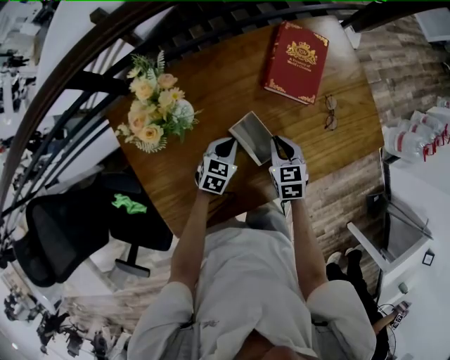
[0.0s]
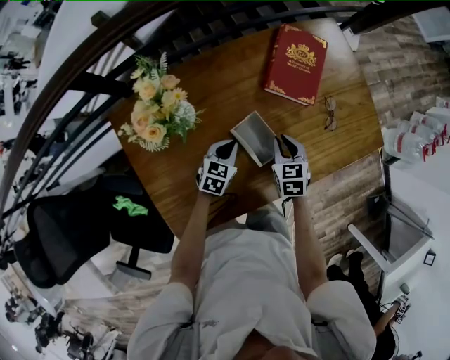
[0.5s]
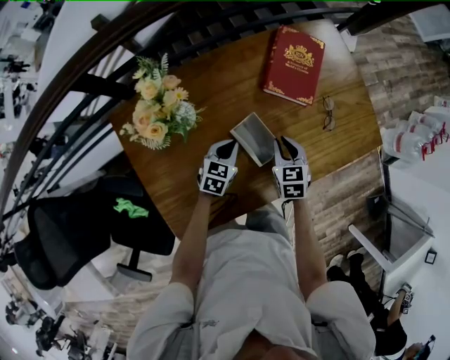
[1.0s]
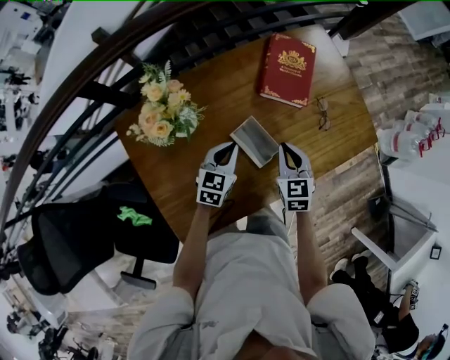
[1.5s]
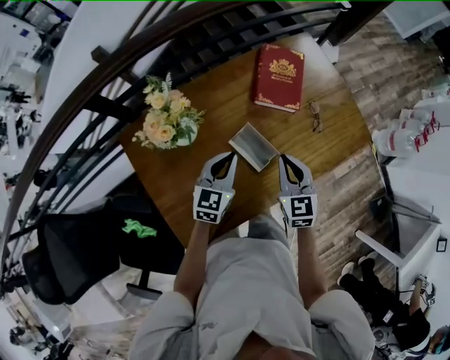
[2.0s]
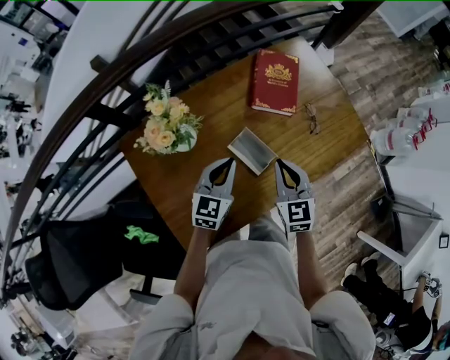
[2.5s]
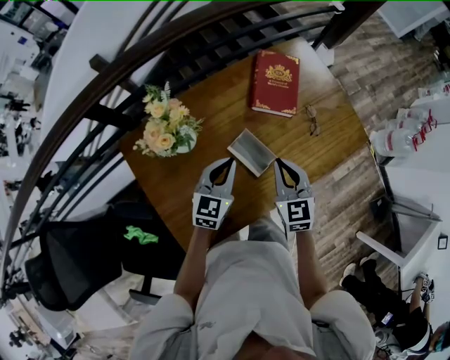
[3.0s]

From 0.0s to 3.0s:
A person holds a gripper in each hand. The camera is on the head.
From 0.0s to 1.5s: Both grippers travel together upward, approximately 10 cm.
From 1.5s to 3.0s: The grippers both shift upward by some 10 cm.

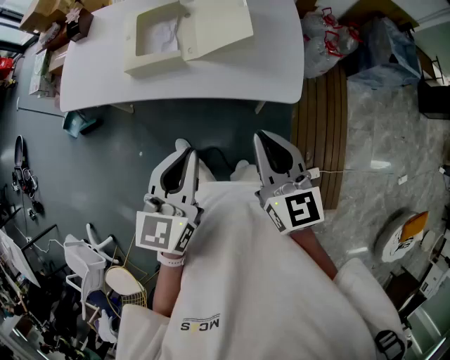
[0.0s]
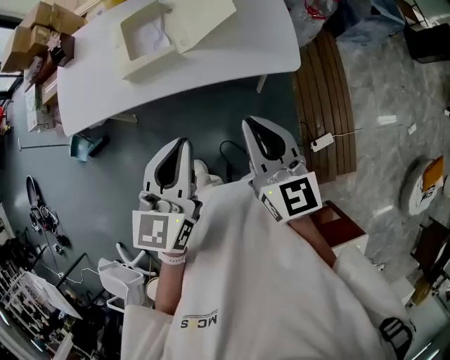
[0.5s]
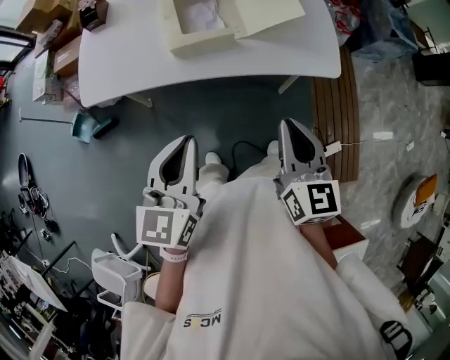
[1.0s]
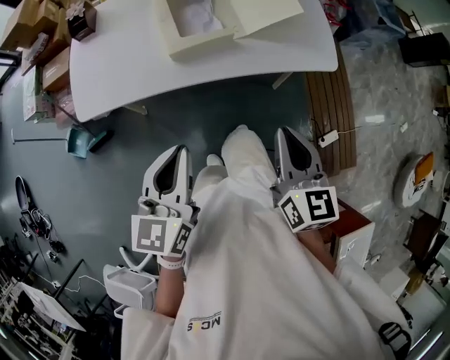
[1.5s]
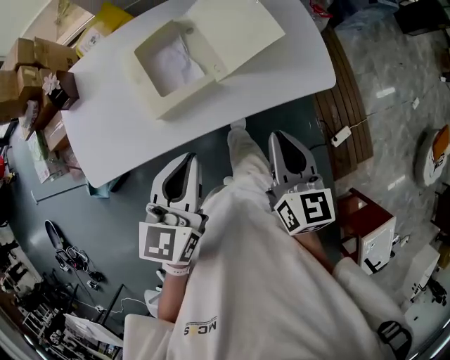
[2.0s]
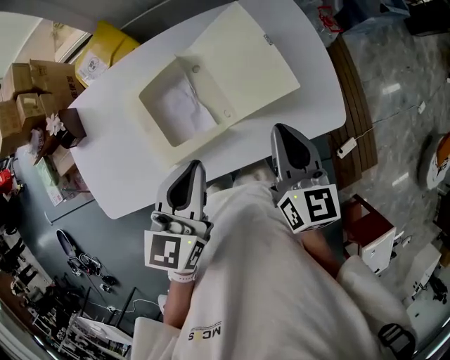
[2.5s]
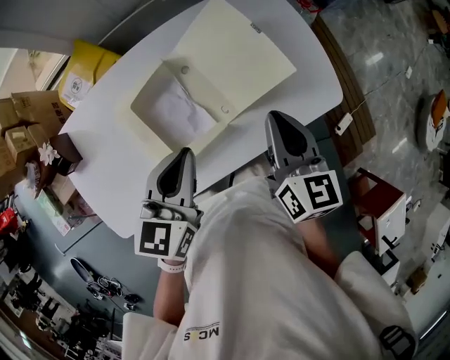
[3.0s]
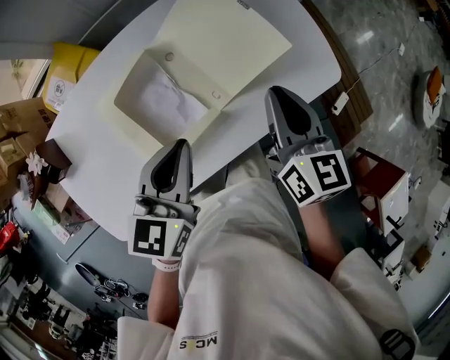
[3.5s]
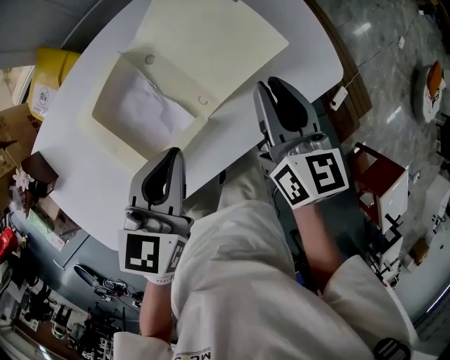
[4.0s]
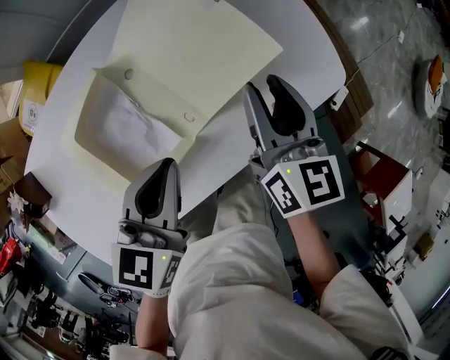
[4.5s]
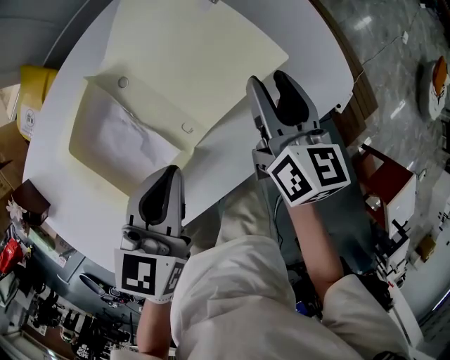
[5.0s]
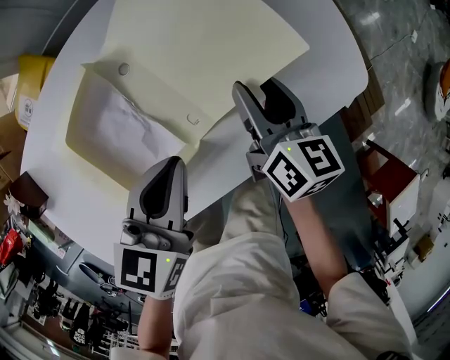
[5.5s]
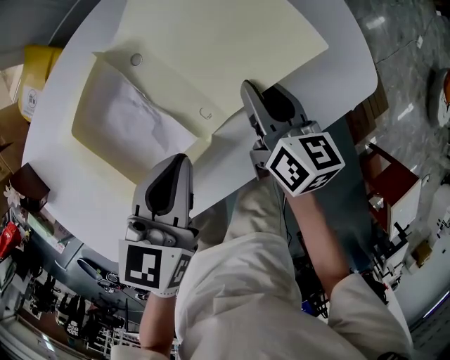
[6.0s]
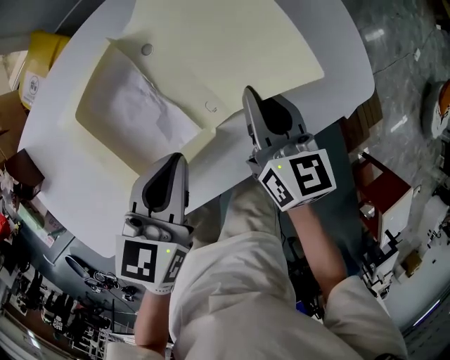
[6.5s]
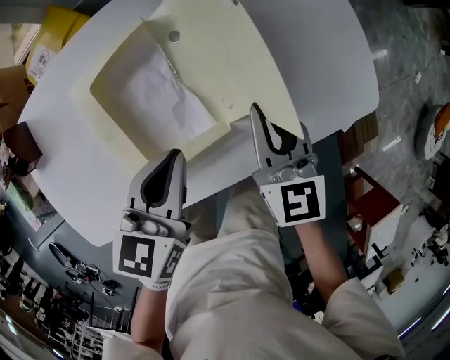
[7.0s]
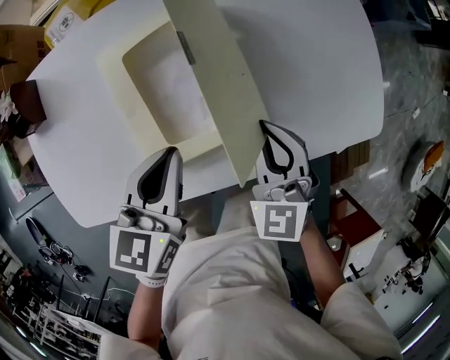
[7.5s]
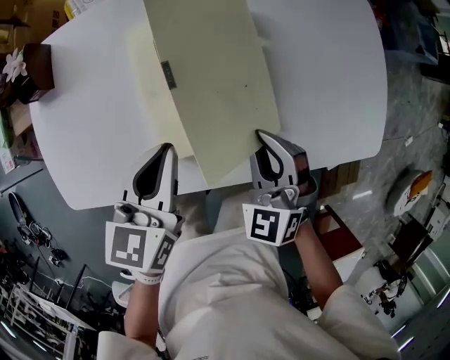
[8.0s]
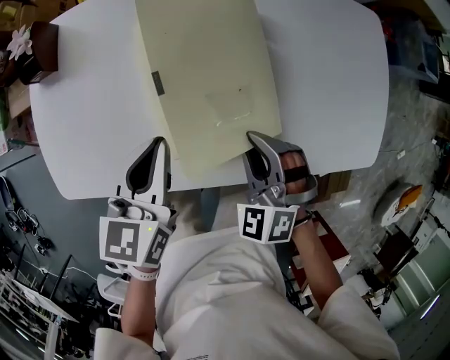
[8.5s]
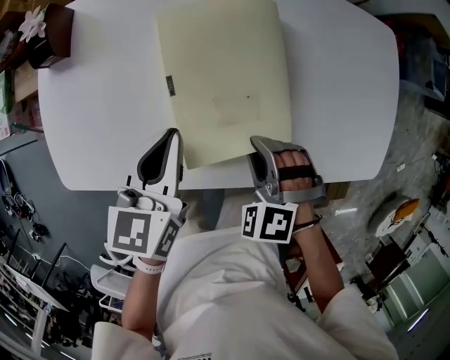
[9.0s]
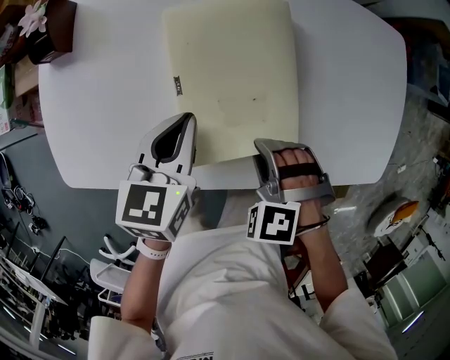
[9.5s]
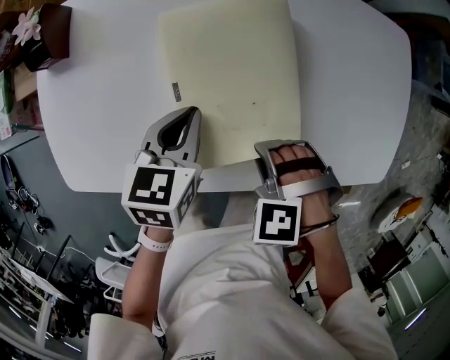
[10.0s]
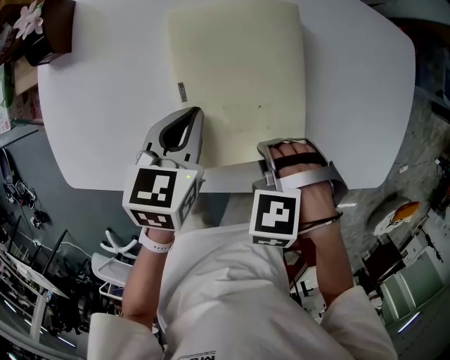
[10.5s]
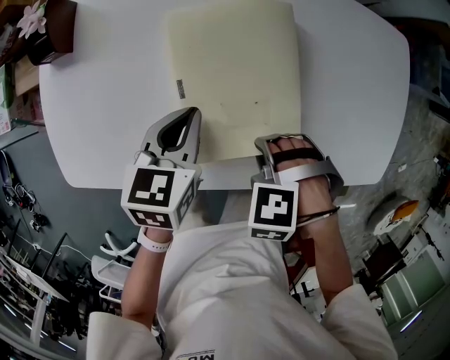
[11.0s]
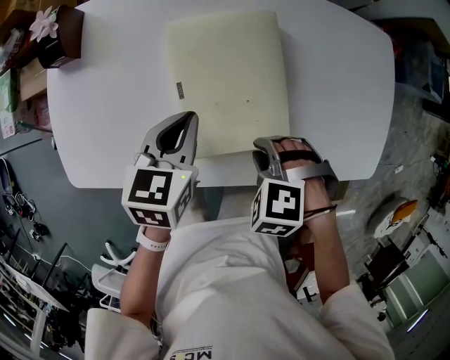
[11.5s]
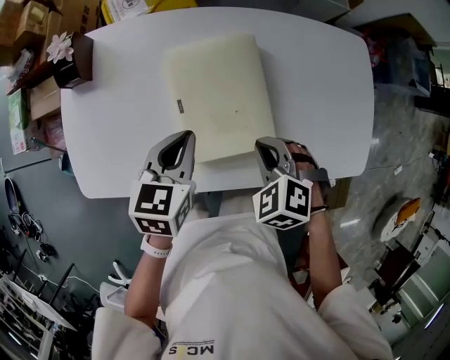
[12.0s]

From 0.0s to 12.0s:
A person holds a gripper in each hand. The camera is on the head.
From 0.0s to 2.0s: The left gripper moves to the left and forward, roughly 25 cm, and changes its angle by some 20 degrees. The right gripper travels to the left by about 15 cm, and changes its angle by approximately 30 degrees.
From 2.0s to 4.0s: The right gripper moves forward, approximately 20 cm. Meanwhile the left gripper is displaced forward and downward by roughly 20 cm, and rotates some 20 degrees.
From 4.0s to 6.0s: The right gripper is displaced downward by about 15 cm; the left gripper goes about 10 cm downward.
From 6.0s to 8.0s: The two grippers go roughly 20 cm to the left and backward. The left gripper changes its angle by some 30 degrees. Meanwhile the right gripper rolls counterclockwise, seen from behind, by roughly 80 degrees.
From 8.0s to 10.0s: The grippers both shift downward by roughly 5 cm. The right gripper tips its fingers downward by roughly 40 degrees.
From 10.0s to 12.0s: The grippers both shift upward by about 10 cm. The right gripper turns by about 30 degrees.

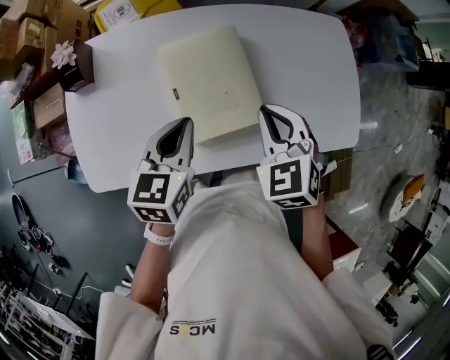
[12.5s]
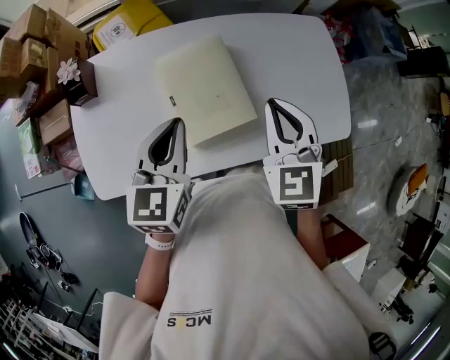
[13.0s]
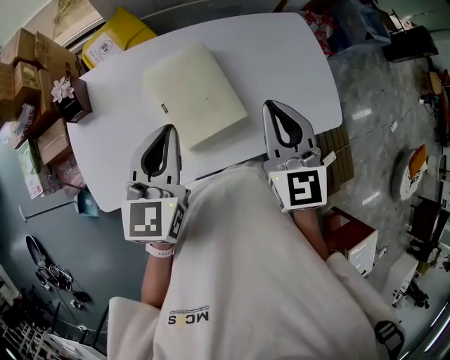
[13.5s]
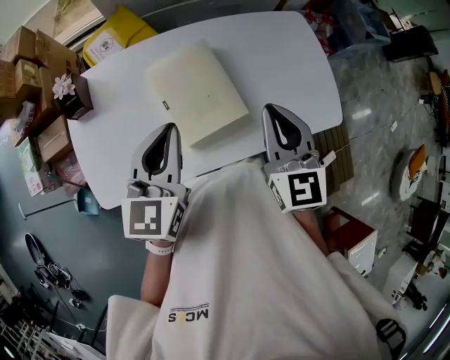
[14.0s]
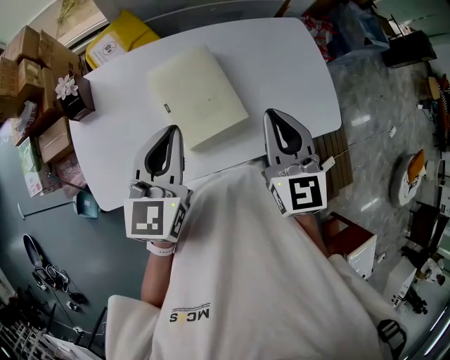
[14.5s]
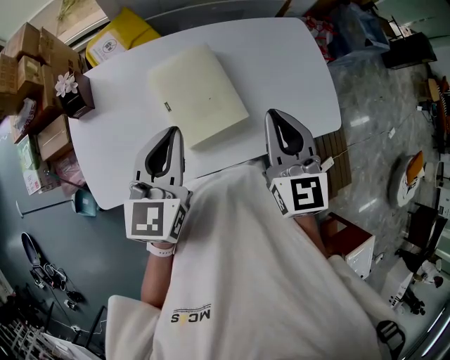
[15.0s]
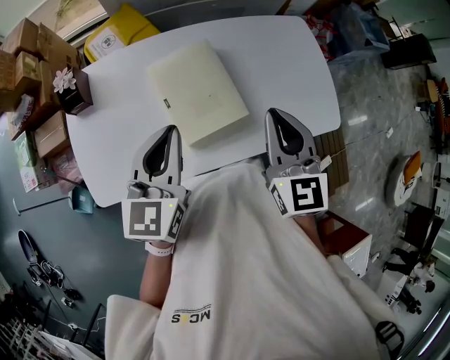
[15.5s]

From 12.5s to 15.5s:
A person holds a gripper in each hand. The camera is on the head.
From 12.5s to 14.0s: The two grippers go approximately 10 cm upward. The left gripper swivels some 20 degrees, while the right gripper rotates roughly 40 degrees.
From 14.0s to 15.5s: Neither gripper changes place.

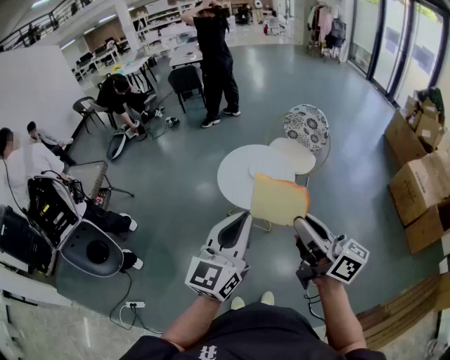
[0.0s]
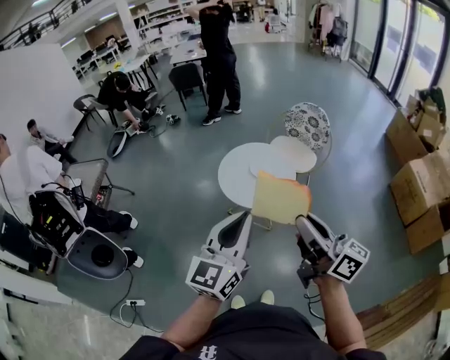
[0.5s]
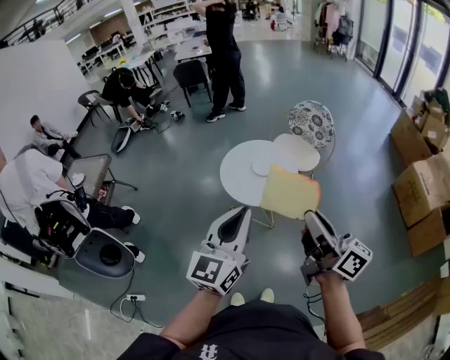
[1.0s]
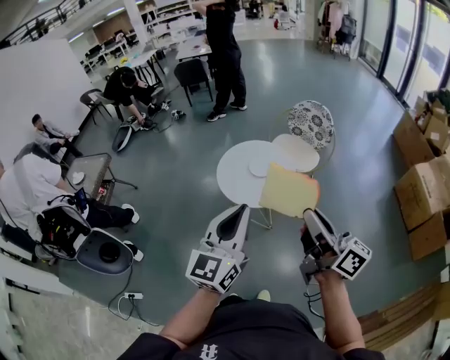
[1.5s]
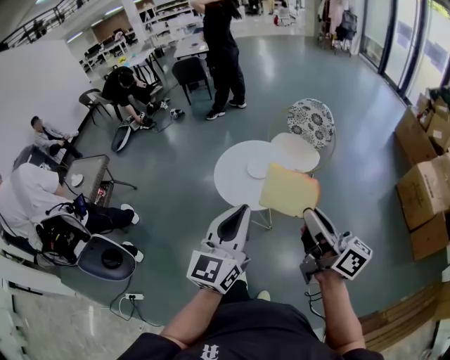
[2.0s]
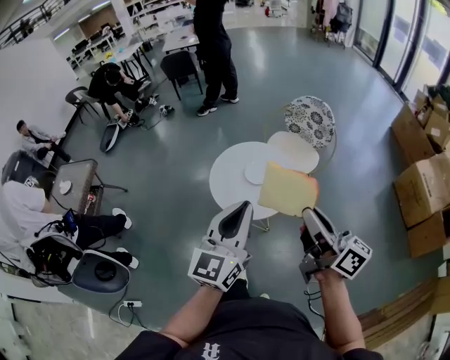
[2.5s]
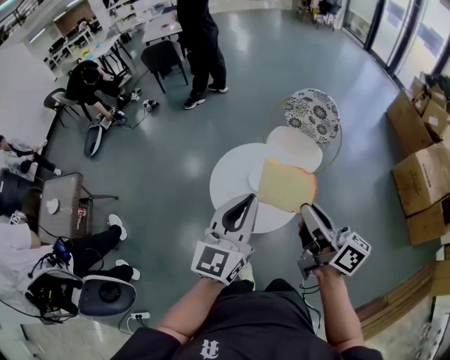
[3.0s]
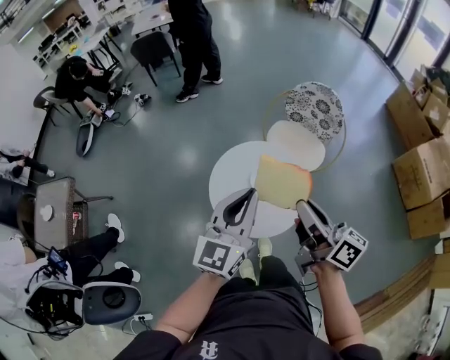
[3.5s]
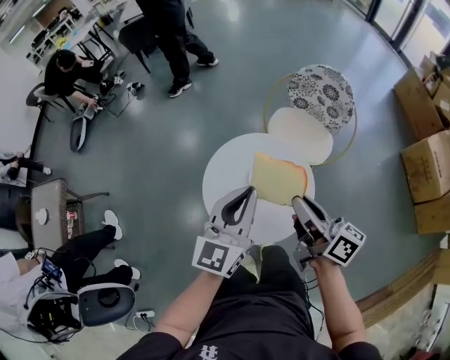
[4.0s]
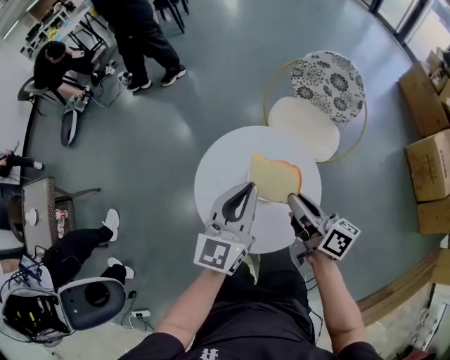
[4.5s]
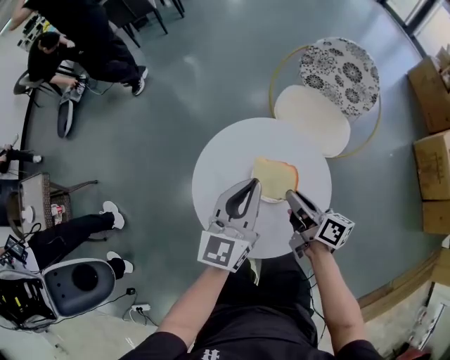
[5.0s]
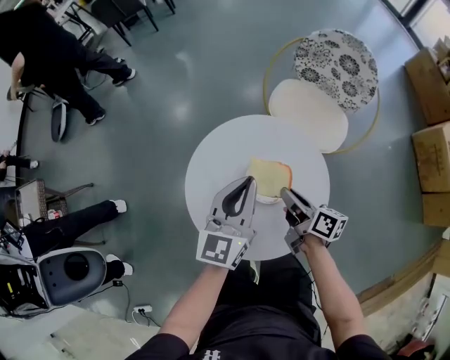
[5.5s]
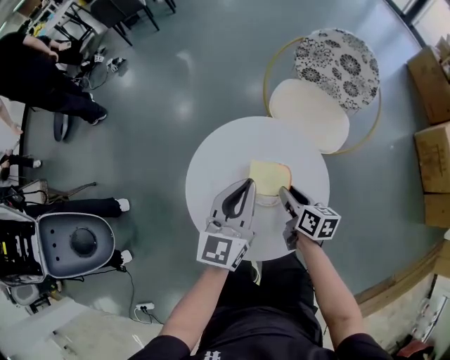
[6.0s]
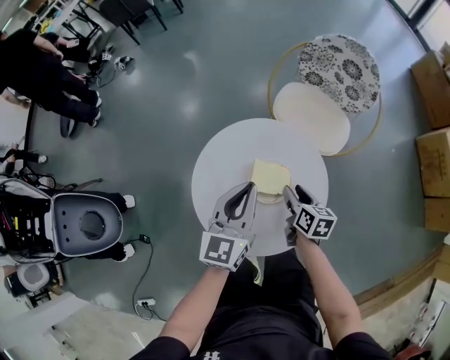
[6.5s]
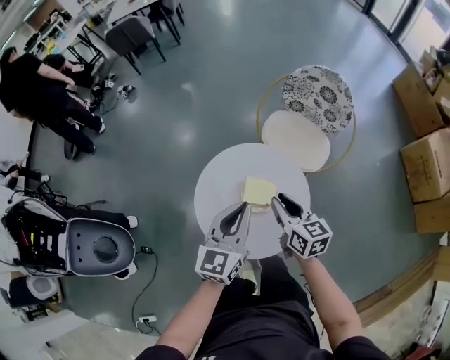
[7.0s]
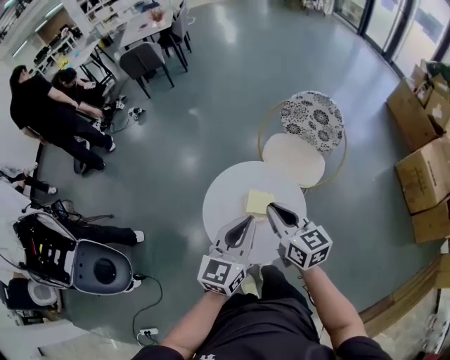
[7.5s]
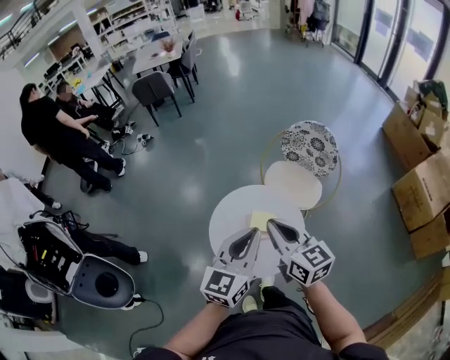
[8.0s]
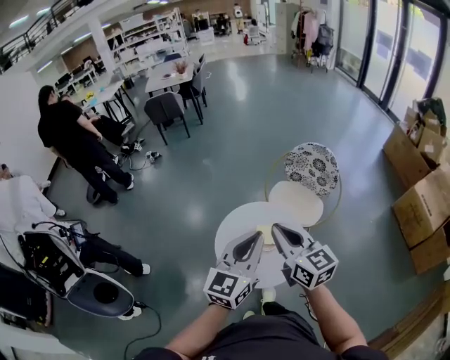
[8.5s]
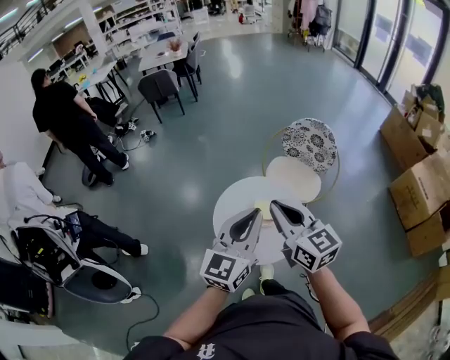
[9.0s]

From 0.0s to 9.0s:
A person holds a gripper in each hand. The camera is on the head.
From 0.0s to 2.0s: The left gripper heads forward and to the right, covering about 10 cm. Meanwhile the right gripper goes approximately 10 cm to the right and forward.
From 2.0s to 4.5s: Both grippers are carried forward, some 40 cm. Both grippers move downward, roughly 30 cm. The right gripper turns by roughly 20 degrees.
From 4.5s to 7.0s: The right gripper moves approximately 20 cm downward and comes back, and turns by some 30 degrees; the left gripper moves roughly 10 cm downward and comes back.
From 7.0s to 9.0s: The left gripper goes roughly 25 cm upward and backward. Meanwhile the right gripper travels upward by about 25 cm, turns by roughly 30 degrees, and closes.
